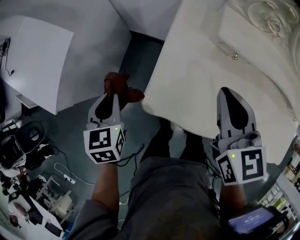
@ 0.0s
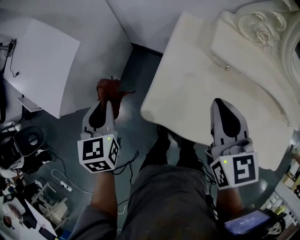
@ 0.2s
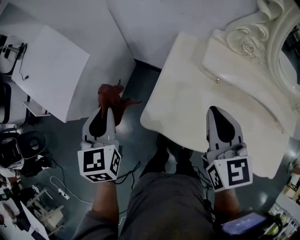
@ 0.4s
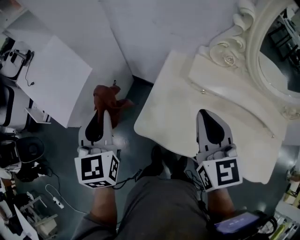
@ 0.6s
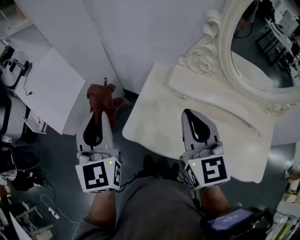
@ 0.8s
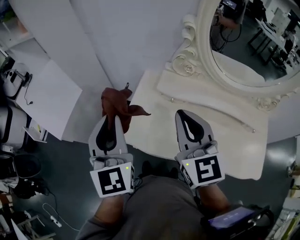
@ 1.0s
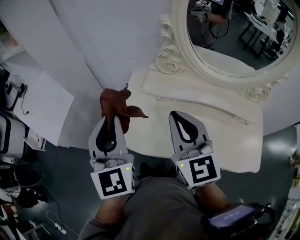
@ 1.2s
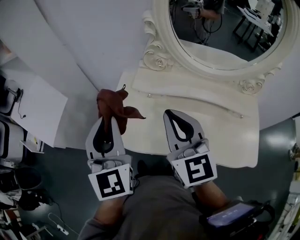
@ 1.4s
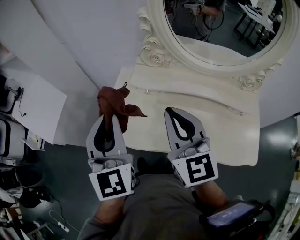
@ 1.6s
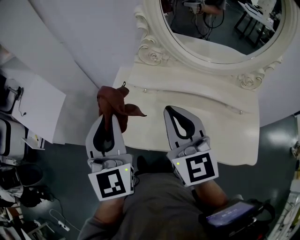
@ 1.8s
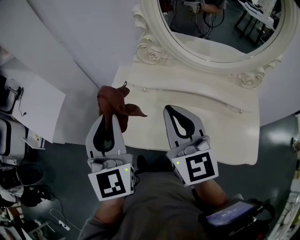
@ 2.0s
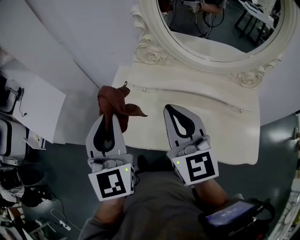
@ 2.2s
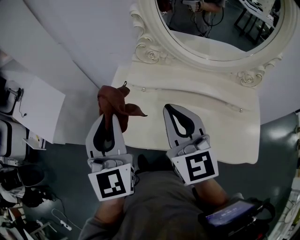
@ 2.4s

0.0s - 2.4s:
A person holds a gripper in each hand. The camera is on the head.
0.0s - 1.2s: The left gripper heads upward and to the right, covering approximately 40 cm, and angles its fingers upward, by some 40 degrees. Meanwhile the right gripper shifts some 25 cm upward, backward and to the right, and rotates approximately 20 degrees.
1.2s - 2.4s: Both grippers travel together to the right, approximately 5 cm.

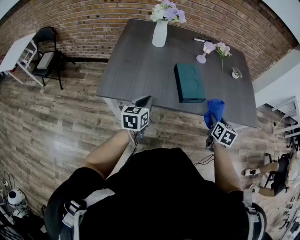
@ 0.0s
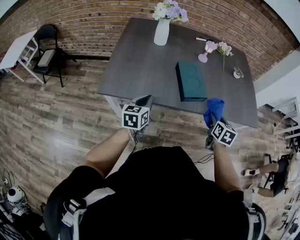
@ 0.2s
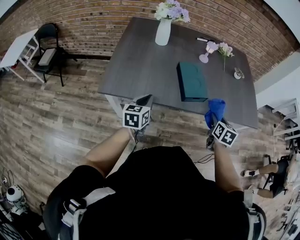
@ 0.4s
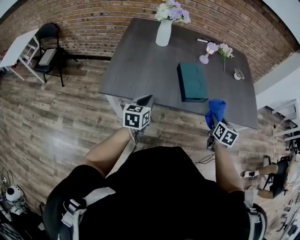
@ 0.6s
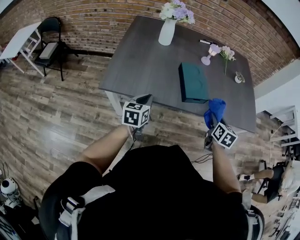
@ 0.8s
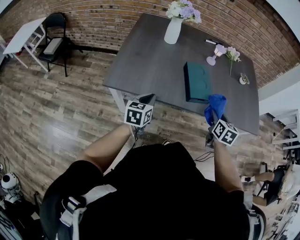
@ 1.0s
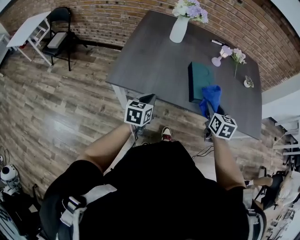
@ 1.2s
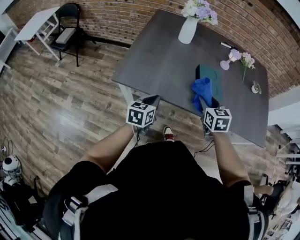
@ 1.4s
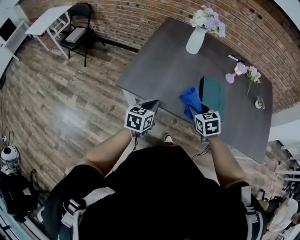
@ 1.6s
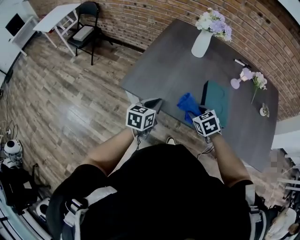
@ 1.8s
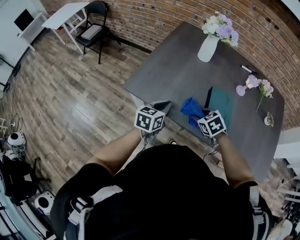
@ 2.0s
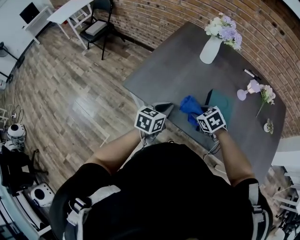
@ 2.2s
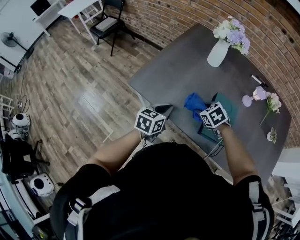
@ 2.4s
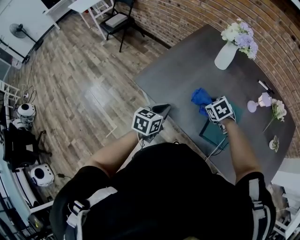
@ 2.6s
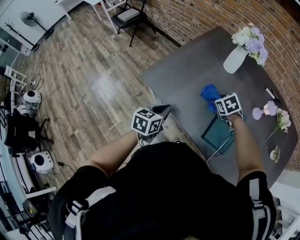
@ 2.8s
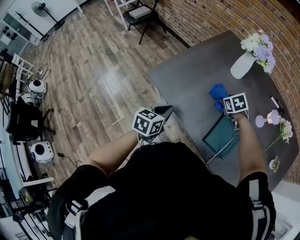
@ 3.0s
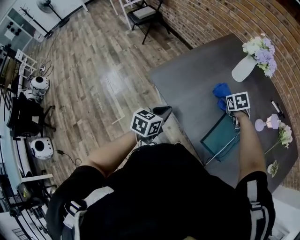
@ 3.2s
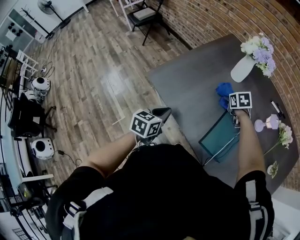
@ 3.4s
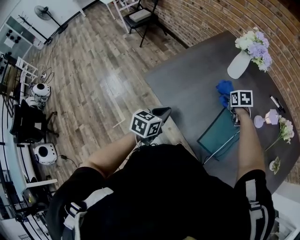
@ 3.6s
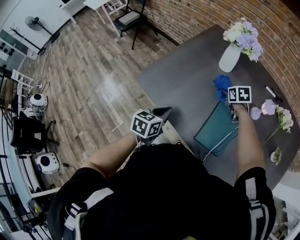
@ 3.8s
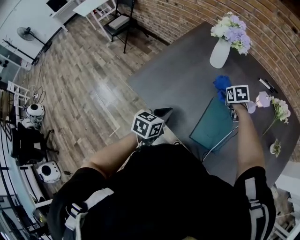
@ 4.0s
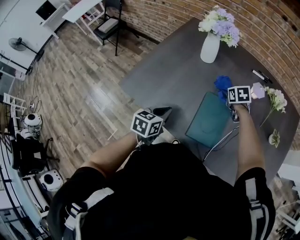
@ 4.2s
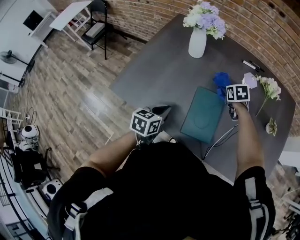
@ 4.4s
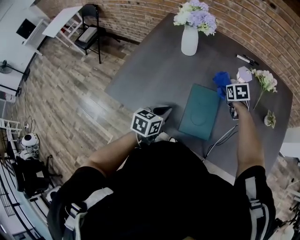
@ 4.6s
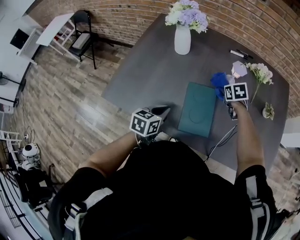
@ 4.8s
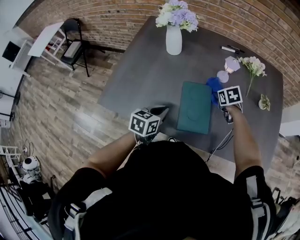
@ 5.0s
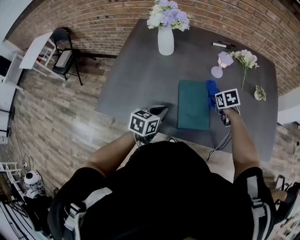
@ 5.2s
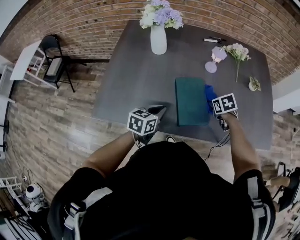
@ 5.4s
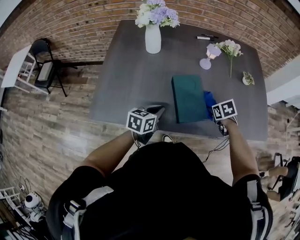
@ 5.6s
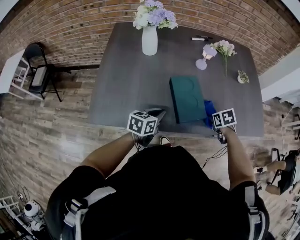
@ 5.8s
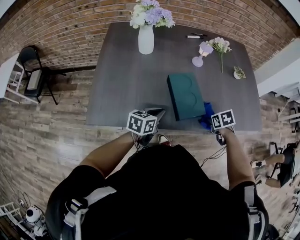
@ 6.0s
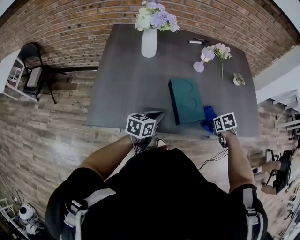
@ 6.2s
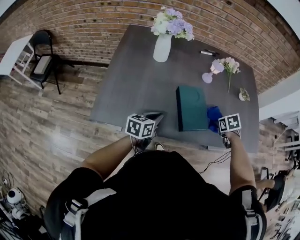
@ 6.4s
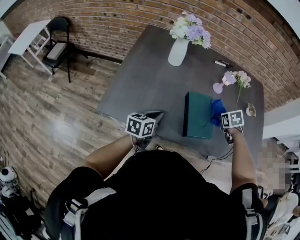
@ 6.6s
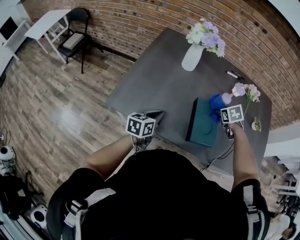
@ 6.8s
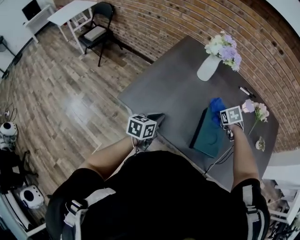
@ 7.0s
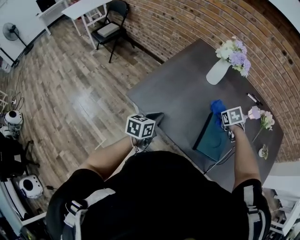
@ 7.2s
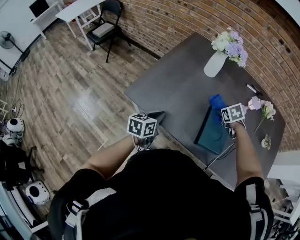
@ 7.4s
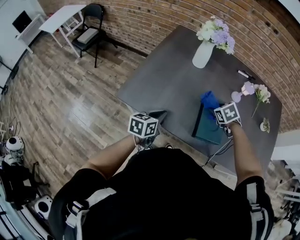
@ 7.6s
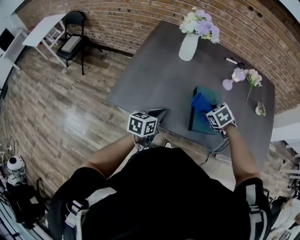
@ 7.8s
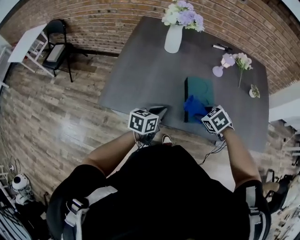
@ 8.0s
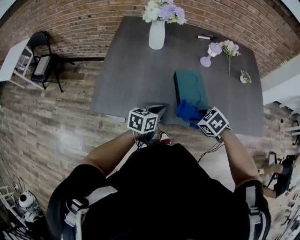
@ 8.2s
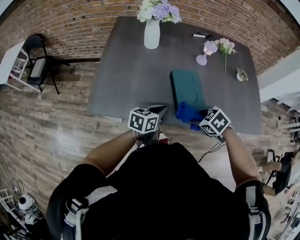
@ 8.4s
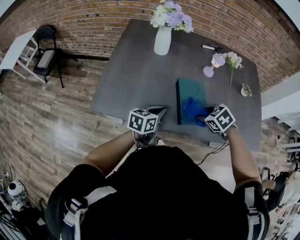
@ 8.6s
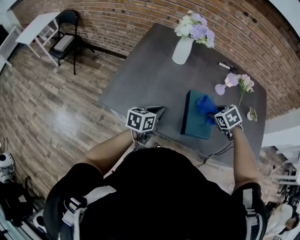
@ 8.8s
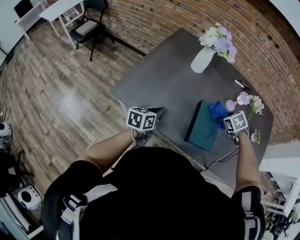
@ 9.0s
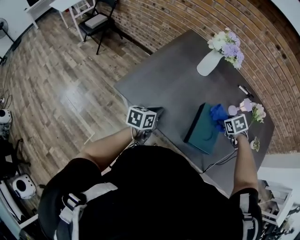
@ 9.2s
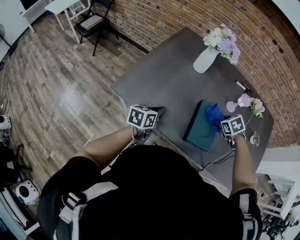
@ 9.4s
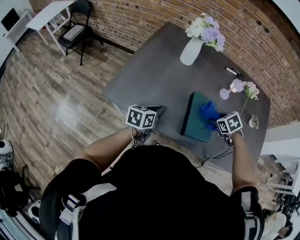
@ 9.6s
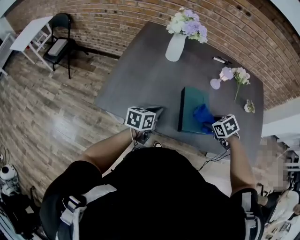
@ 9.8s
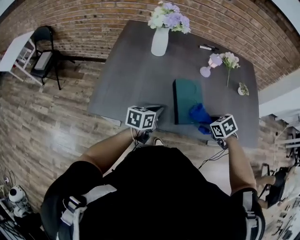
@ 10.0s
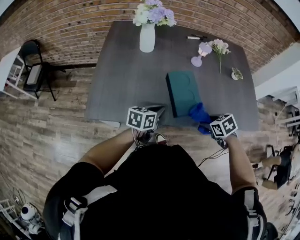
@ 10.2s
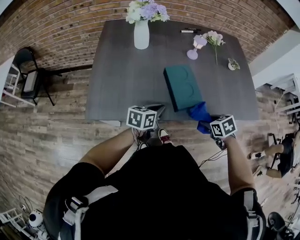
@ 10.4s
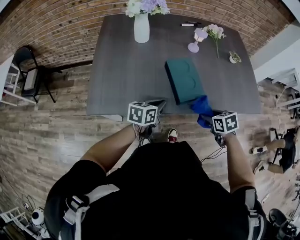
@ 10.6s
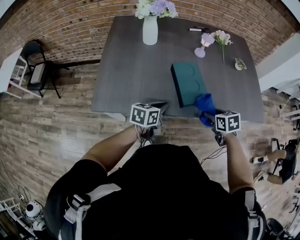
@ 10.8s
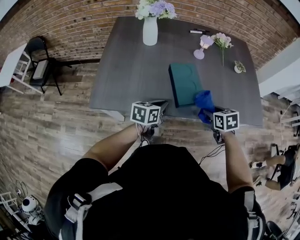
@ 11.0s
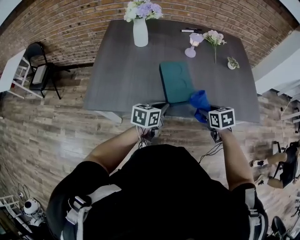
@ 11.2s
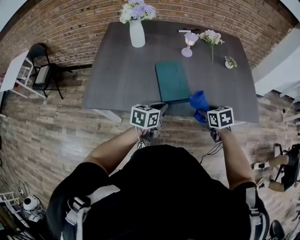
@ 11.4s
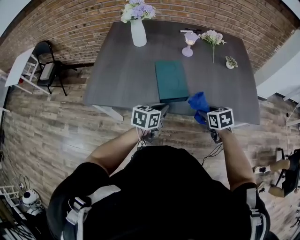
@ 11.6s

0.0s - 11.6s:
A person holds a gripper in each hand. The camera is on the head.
0.0s - 1.4s: The right gripper heads to the left, covering roughly 20 cm, and turns by about 30 degrees.
1.4s - 2.8s: The left gripper swivels roughly 20 degrees; the right gripper ends up some 20 cm from where it was, and swivels approximately 50 degrees.
2.8s - 4.4s: The left gripper is displaced to the right by about 15 cm. Meanwhile the right gripper goes about 20 cm to the right, and swivels roughly 30 degrees.
4.4s - 5.8s: The right gripper changes place by some 30 cm, and changes its angle by roughly 30 degrees, while the left gripper swivels about 30 degrees.
5.8s - 7.2s: The left gripper shifts by some 15 cm, and swivels approximately 40 degrees. The right gripper moves about 30 cm, and rotates around the line of its fingers by some 40 degrees, counterclockwise from behind.
7.2s - 8.8s: The right gripper moves backward and to the right, about 15 cm. The left gripper goes about 10 cm to the right.
8.8s - 10.2s: The right gripper is displaced backward by approximately 15 cm, and rotates about 30 degrees, while the left gripper heads to the right, covering some 5 cm, and turns by some 20 degrees.
10.2s - 11.6s: The left gripper travels to the right and backward by approximately 15 cm. The right gripper goes roughly 10 cm to the right.

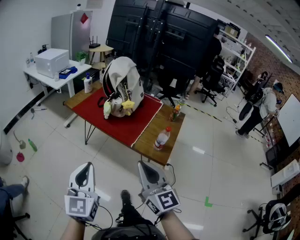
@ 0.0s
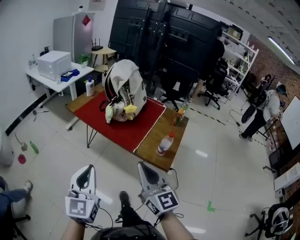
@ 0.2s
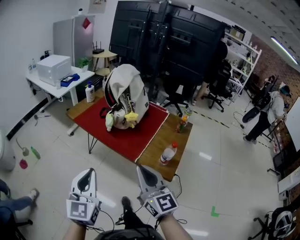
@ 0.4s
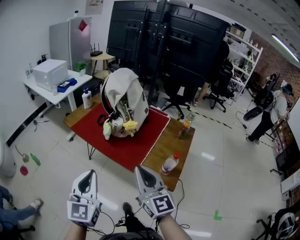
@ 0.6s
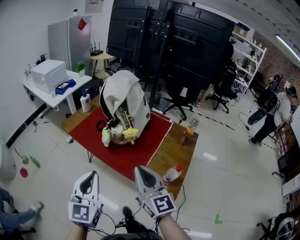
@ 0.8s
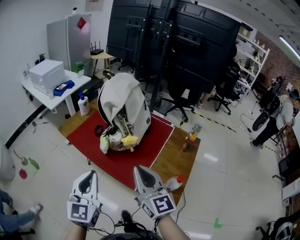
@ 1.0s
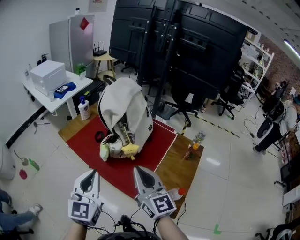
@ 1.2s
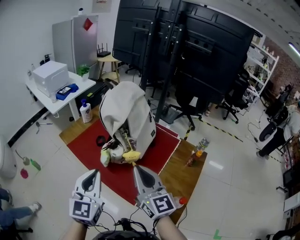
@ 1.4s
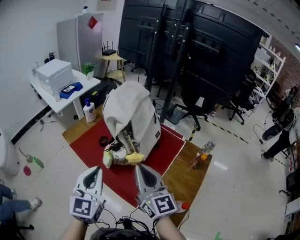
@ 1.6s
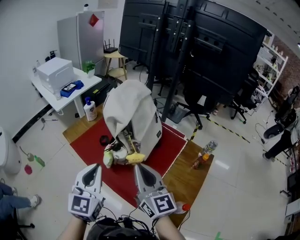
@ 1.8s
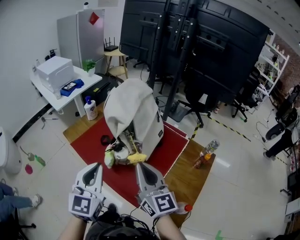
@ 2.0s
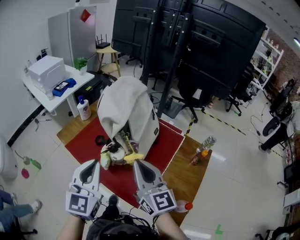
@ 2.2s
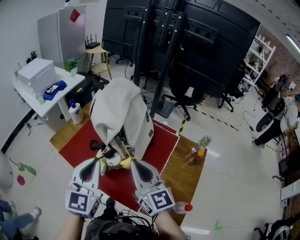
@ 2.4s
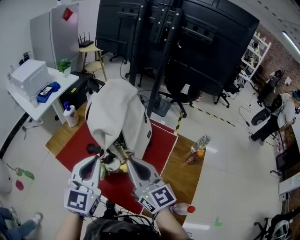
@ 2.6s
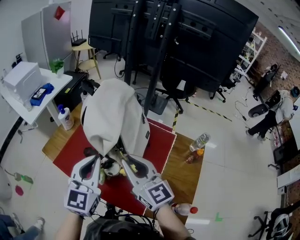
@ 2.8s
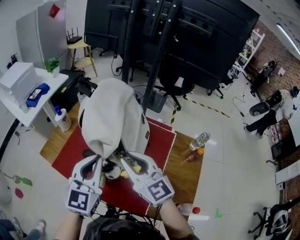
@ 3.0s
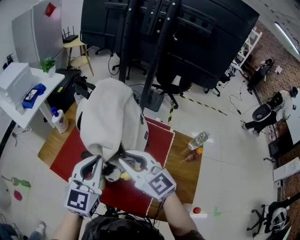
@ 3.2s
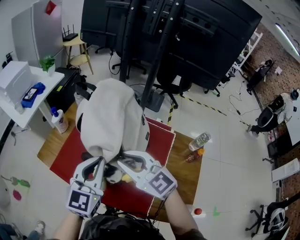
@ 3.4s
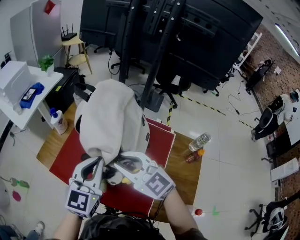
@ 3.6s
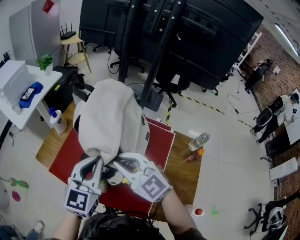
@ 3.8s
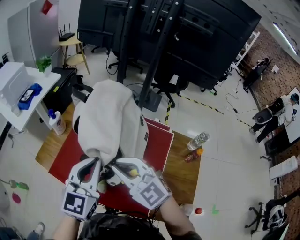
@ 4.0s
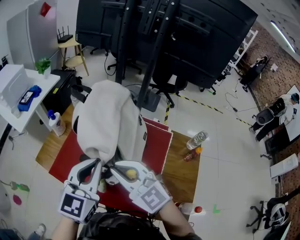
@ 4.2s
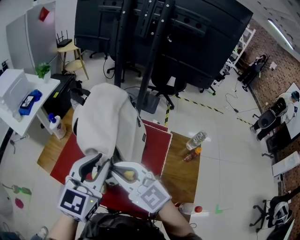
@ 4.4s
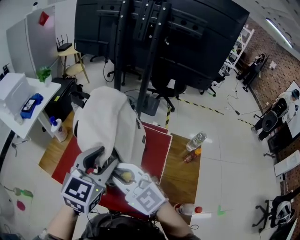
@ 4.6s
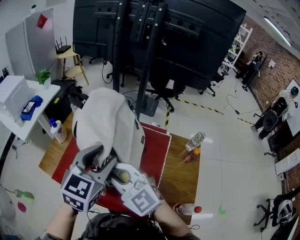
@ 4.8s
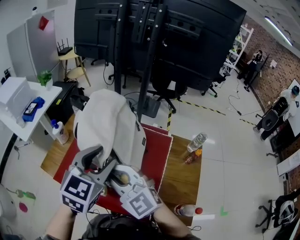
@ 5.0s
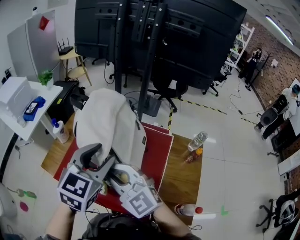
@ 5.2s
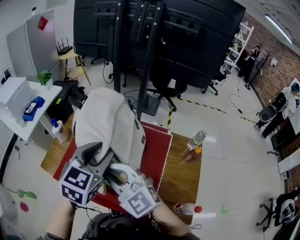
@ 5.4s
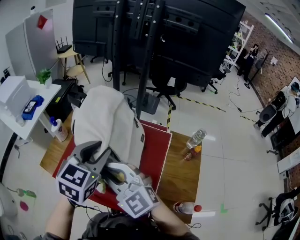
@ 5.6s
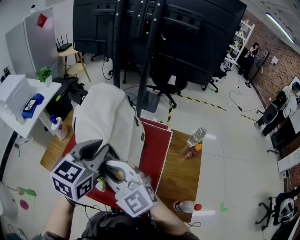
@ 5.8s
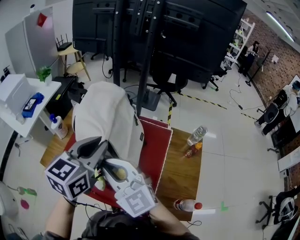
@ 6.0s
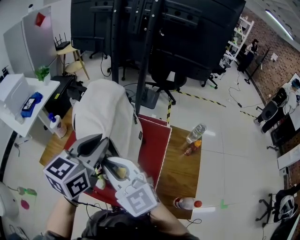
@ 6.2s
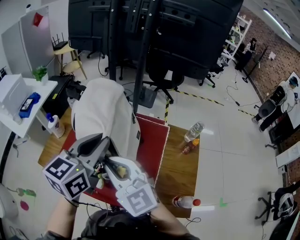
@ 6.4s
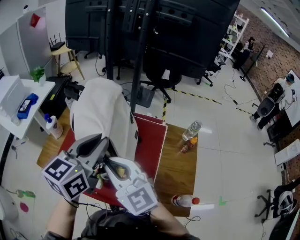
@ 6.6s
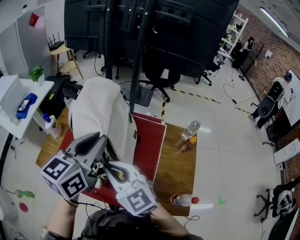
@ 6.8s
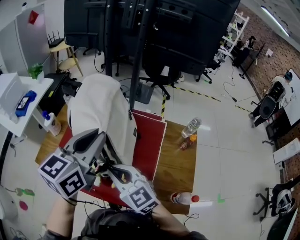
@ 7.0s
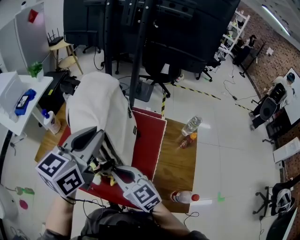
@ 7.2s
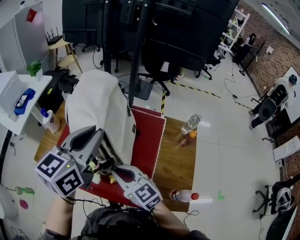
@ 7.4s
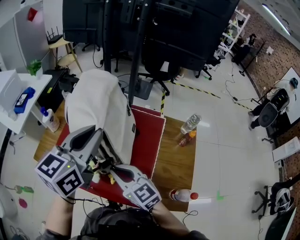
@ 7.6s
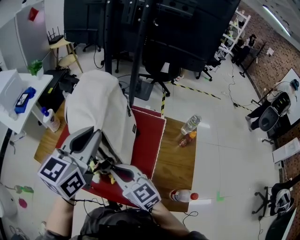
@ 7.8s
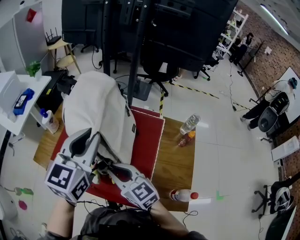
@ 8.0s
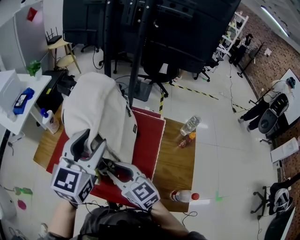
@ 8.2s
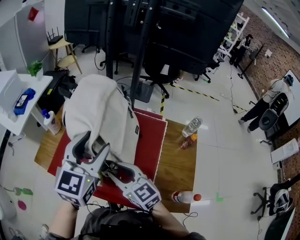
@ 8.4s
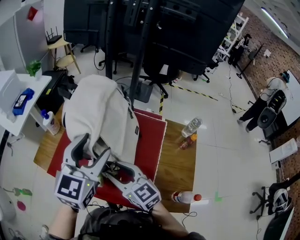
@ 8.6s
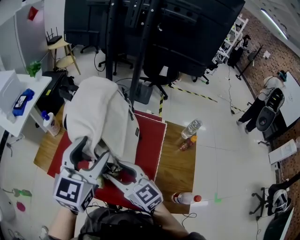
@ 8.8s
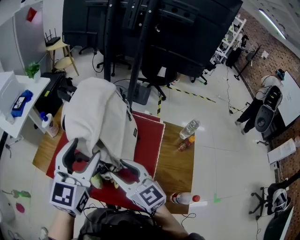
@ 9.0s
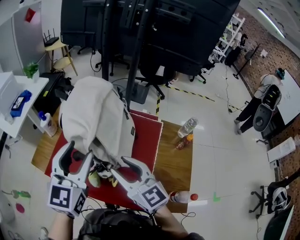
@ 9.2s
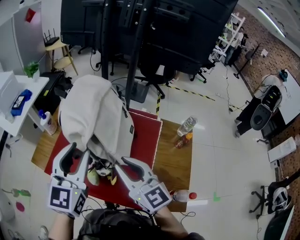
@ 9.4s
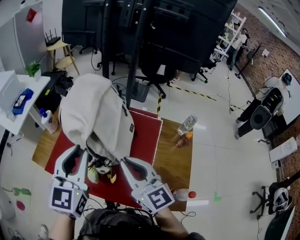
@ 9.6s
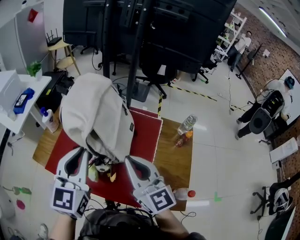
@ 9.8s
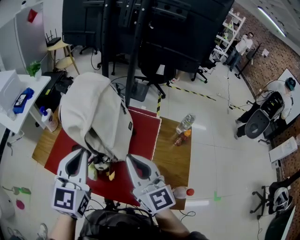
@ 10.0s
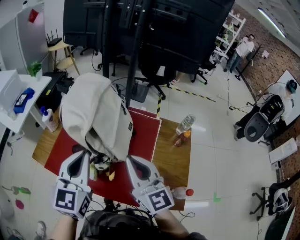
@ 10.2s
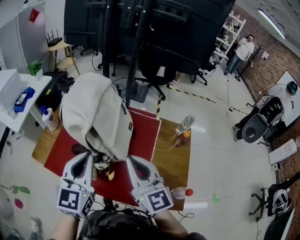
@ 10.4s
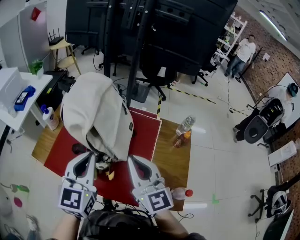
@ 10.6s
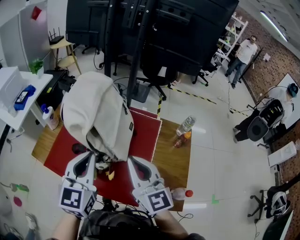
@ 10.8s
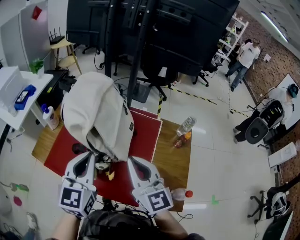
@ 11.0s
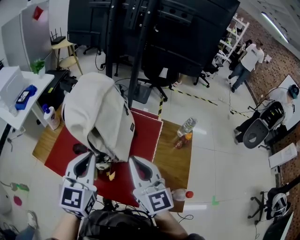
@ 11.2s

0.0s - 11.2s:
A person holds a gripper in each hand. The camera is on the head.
0.0s - 1.6s: Both grippers are carried forward, some 50 cm.
1.6s - 3.2s: The grippers both shift forward by some 20 cm. The right gripper swivels roughly 20 degrees. Meanwhile the left gripper changes its angle by roughly 20 degrees.
3.2s - 4.8s: The right gripper is displaced to the left by roughly 5 cm, while the left gripper ends up about 5 cm from where it was, and opens.
4.8s - 6.4s: The left gripper rotates roughly 20 degrees, and closes its fingers.
6.4s - 8.0s: The right gripper travels downward by some 10 cm, and changes its angle by some 20 degrees.
8.0s - 9.6s: The left gripper shifts by roughly 5 cm, and opens, then closes once more; the right gripper heads upward and to the right, covering some 10 cm, turns by roughly 20 degrees, and opens, then closes once more.
9.6s - 11.2s: The left gripper ends up approximately 5 cm from where it was.
